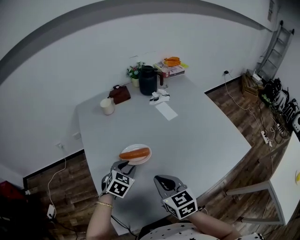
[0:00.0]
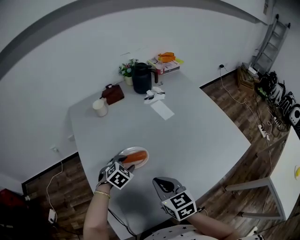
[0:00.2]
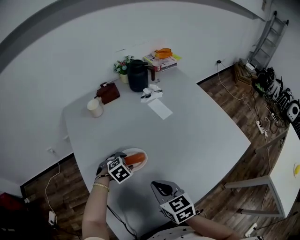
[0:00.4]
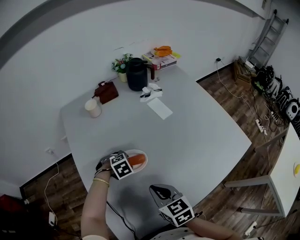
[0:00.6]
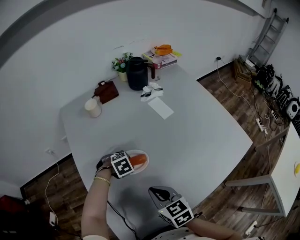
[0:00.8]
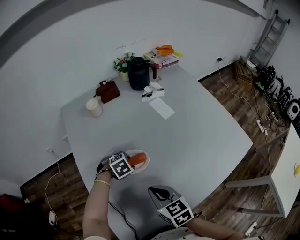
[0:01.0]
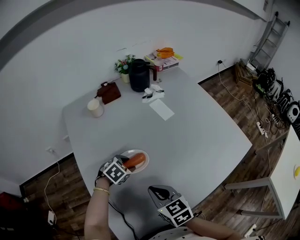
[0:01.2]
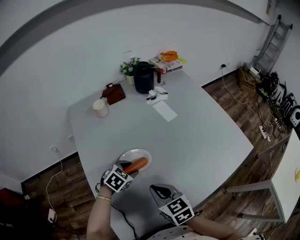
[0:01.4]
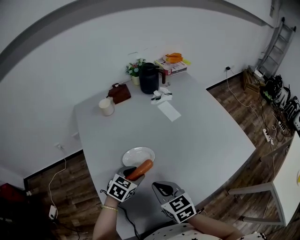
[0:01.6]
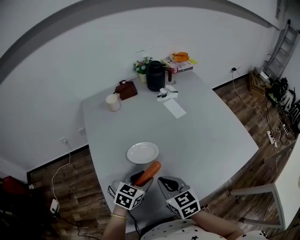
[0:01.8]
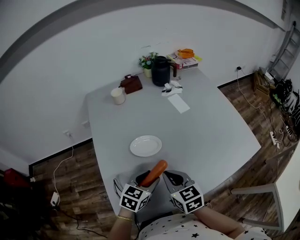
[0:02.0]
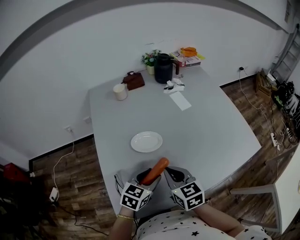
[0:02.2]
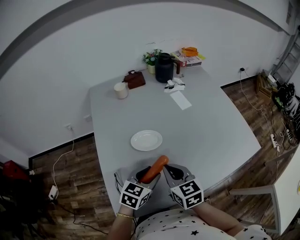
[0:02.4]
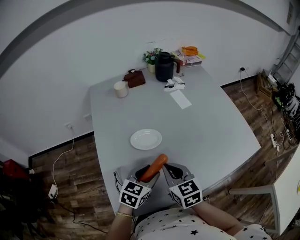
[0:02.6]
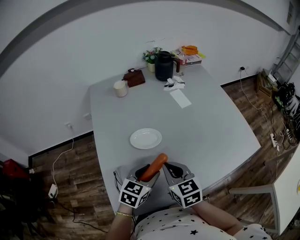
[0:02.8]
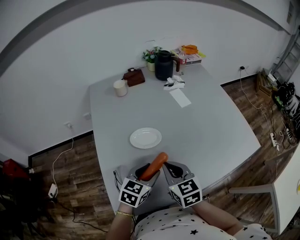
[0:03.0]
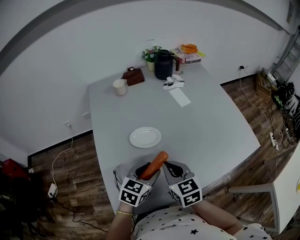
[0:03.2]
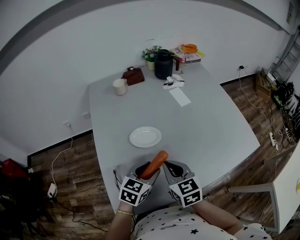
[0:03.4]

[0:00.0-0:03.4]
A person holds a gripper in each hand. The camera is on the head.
0:00.0 to 0:01.6: The left gripper moves roughly 10 cm downward and comes back.
0:01.6 to 0:03.4: The left gripper travels backward by approximately 10 cm.

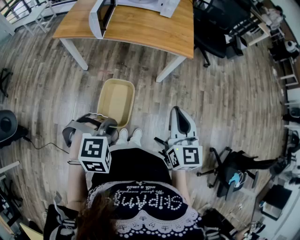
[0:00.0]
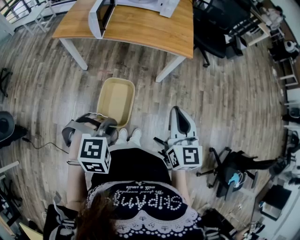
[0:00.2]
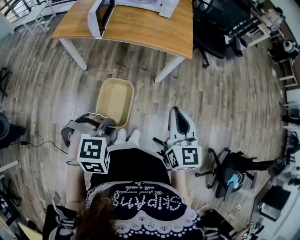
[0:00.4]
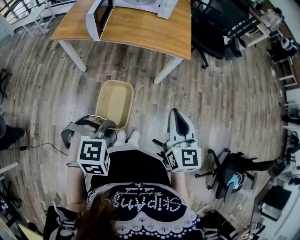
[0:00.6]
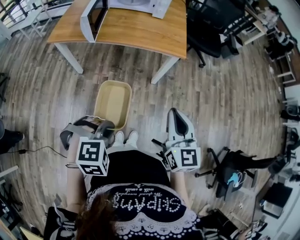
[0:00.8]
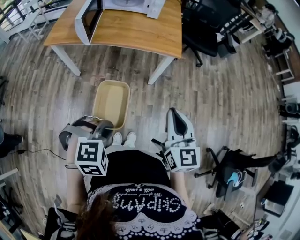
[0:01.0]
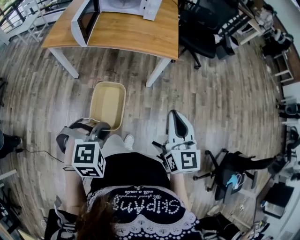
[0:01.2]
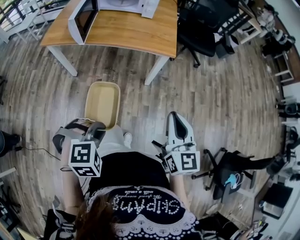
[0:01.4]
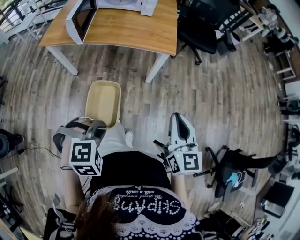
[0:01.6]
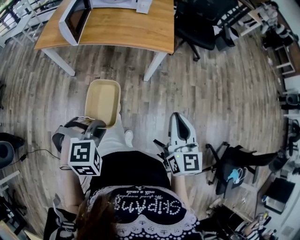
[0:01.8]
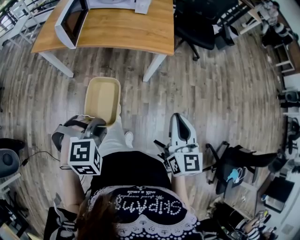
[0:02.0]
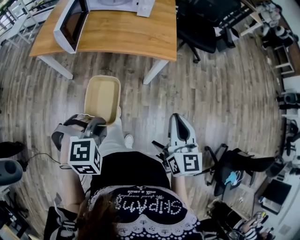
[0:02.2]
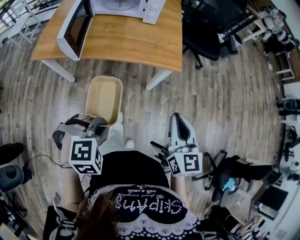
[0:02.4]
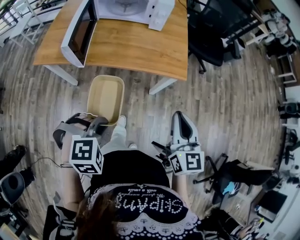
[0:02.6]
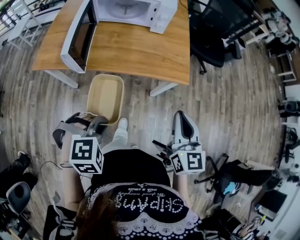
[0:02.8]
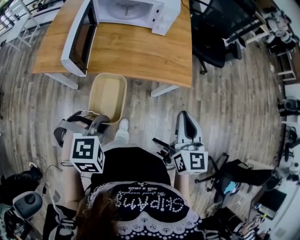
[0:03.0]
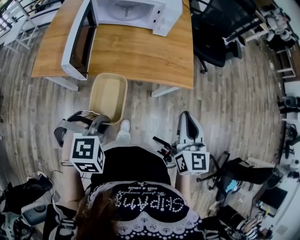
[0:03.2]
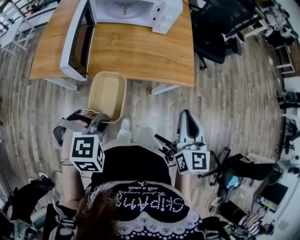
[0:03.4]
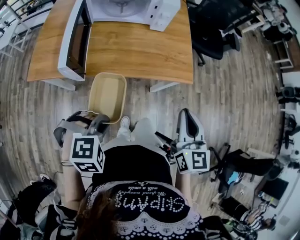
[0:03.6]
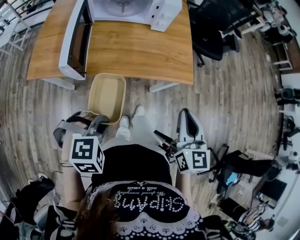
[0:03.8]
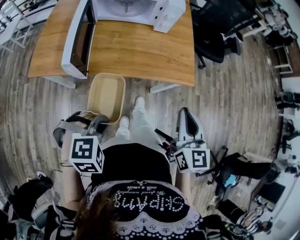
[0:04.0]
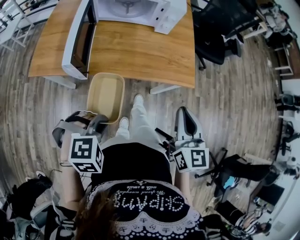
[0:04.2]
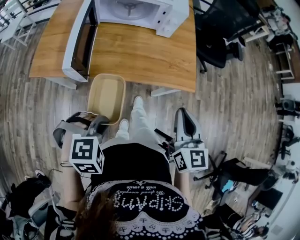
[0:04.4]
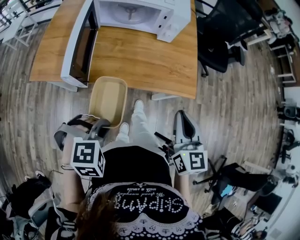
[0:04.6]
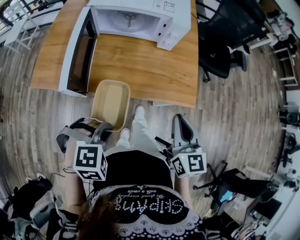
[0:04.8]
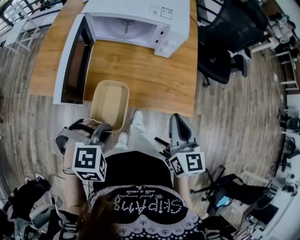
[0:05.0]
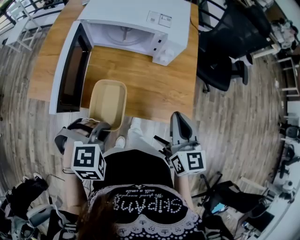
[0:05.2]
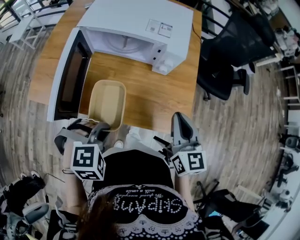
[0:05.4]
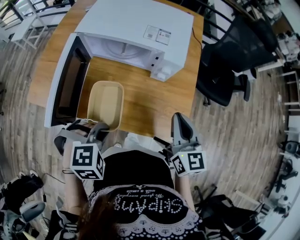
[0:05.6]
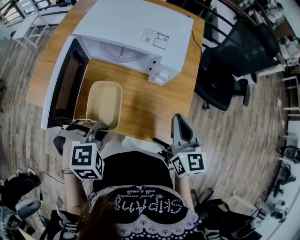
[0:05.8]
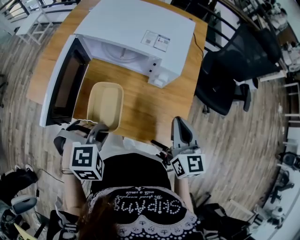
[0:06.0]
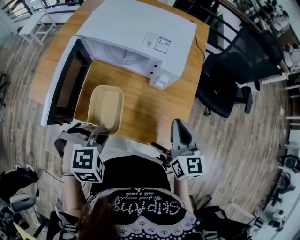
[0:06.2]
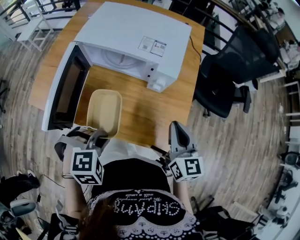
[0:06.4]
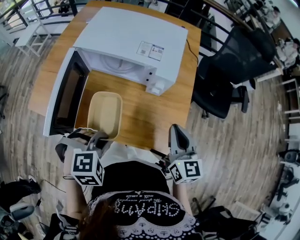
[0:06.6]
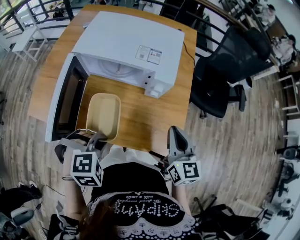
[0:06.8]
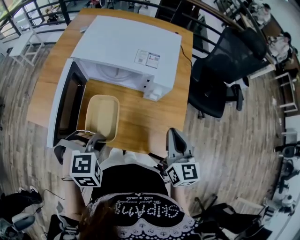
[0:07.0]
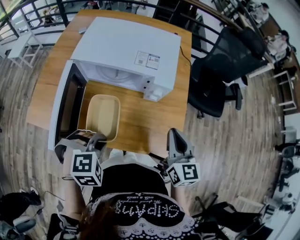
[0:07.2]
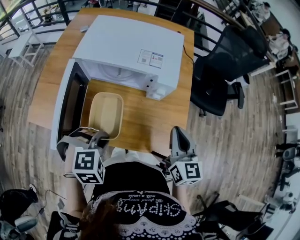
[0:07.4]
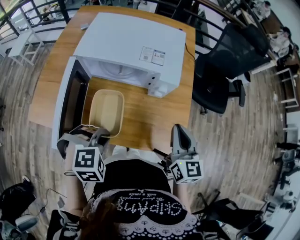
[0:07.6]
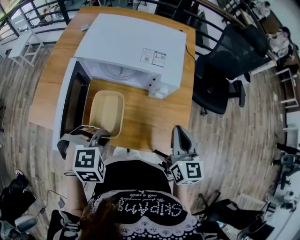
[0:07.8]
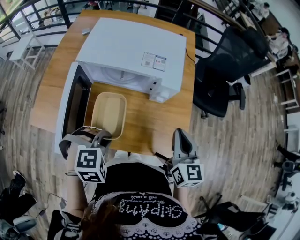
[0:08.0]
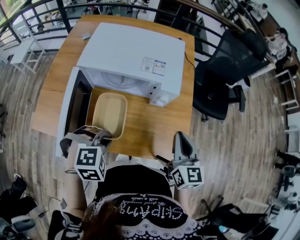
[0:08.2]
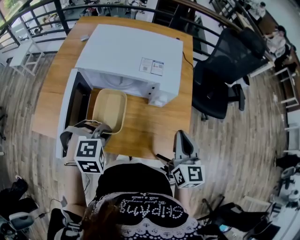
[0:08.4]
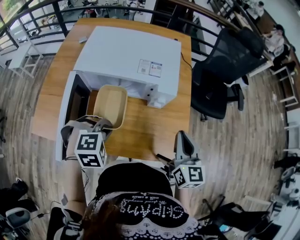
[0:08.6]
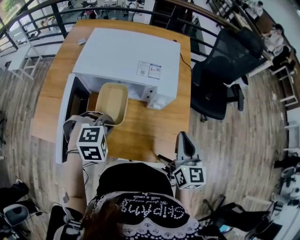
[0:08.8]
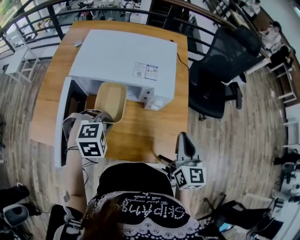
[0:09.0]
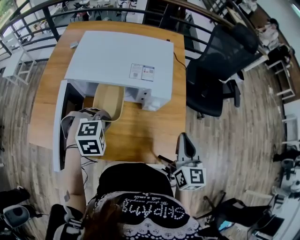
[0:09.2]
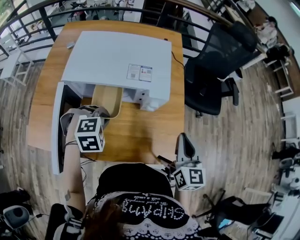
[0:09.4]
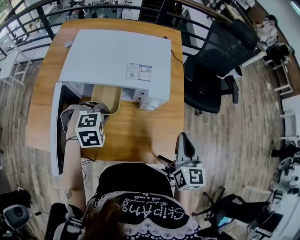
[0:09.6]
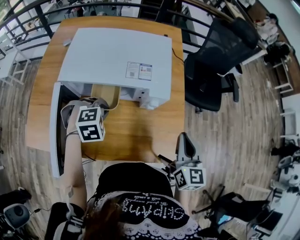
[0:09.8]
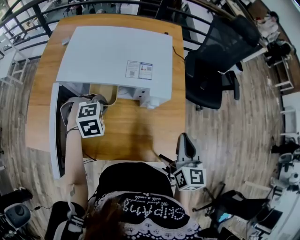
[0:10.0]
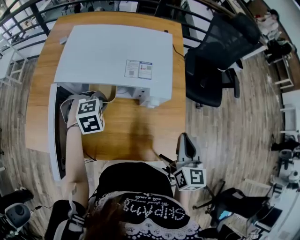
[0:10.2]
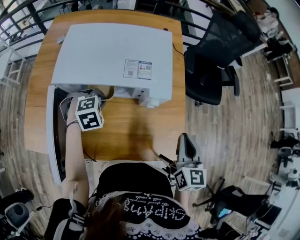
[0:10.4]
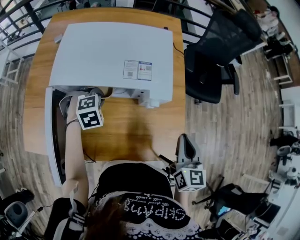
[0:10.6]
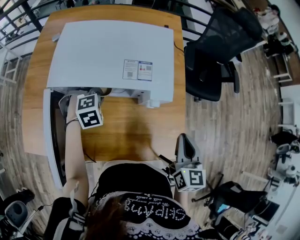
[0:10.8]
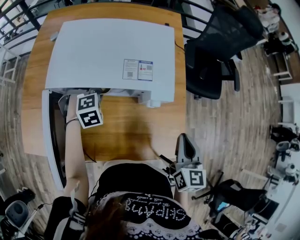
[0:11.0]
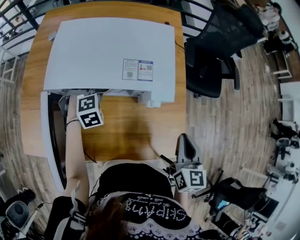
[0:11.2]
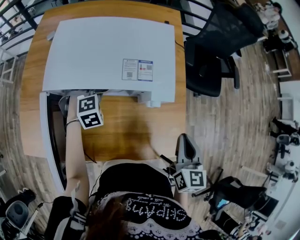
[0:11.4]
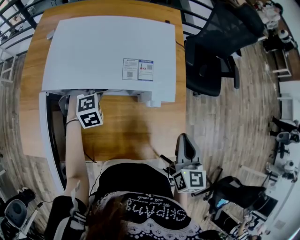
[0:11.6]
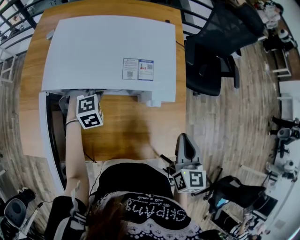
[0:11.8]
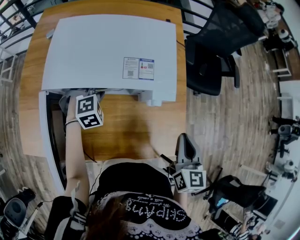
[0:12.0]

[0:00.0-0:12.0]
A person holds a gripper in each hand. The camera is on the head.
0:00.0 to 0:01.6: The left gripper moves to the right, approximately 5 cm, while the right gripper travels to the right by roughly 10 cm.
0:01.6 to 0:03.0: Both grippers travel together forward and to the left, approximately 25 cm.
0:03.0 to 0:04.4: The right gripper is displaced to the left by about 5 cm.
0:04.4 to 0:06.0: Both grippers travel together forward, about 25 cm.
0:06.0 to 0:07.6: The left gripper changes place by roughly 5 cm.
0:07.6 to 0:09.0: The left gripper heads forward, covering about 10 cm.
0:09.0 to 0:10.4: The left gripper is displaced forward, downward and to the left by some 15 cm.
0:10.4 to 0:12.0: The left gripper moves approximately 5 cm.

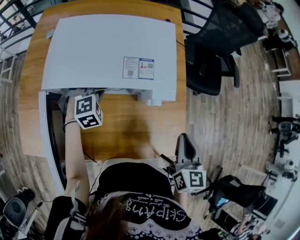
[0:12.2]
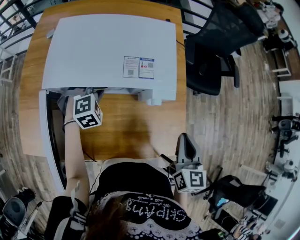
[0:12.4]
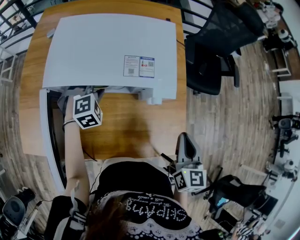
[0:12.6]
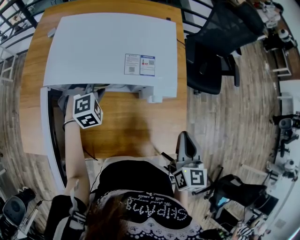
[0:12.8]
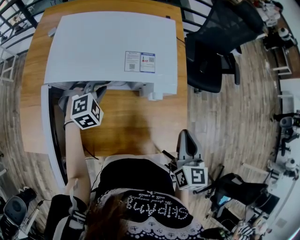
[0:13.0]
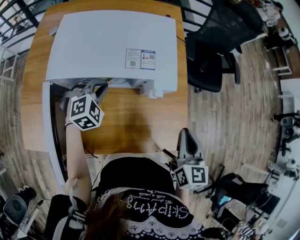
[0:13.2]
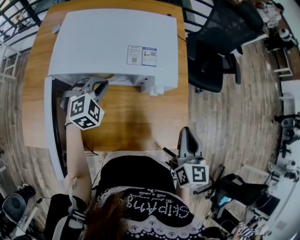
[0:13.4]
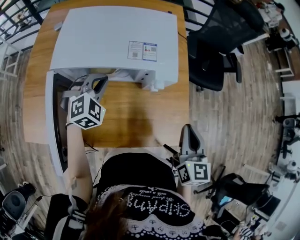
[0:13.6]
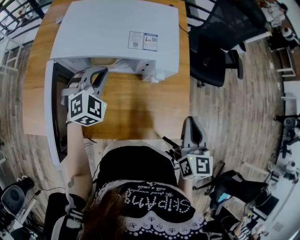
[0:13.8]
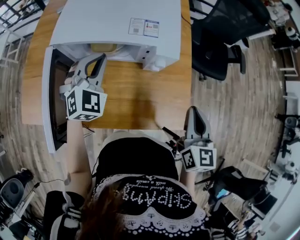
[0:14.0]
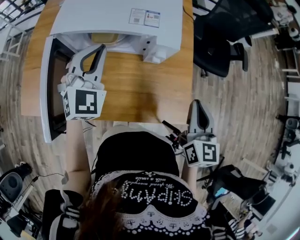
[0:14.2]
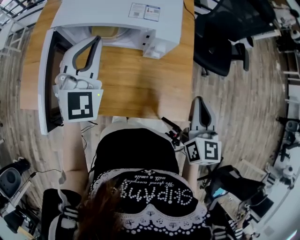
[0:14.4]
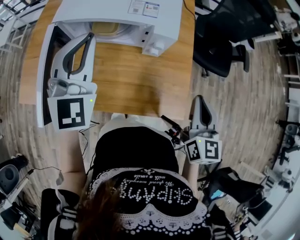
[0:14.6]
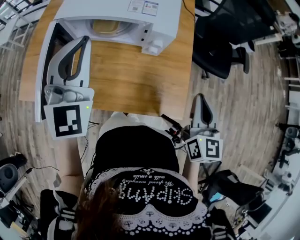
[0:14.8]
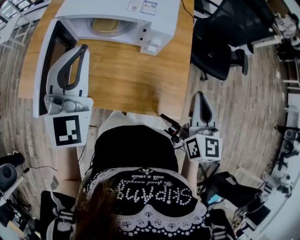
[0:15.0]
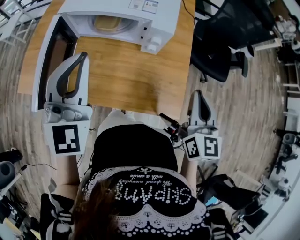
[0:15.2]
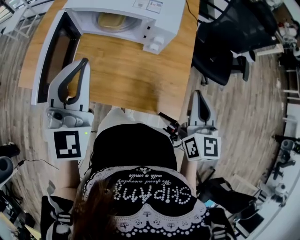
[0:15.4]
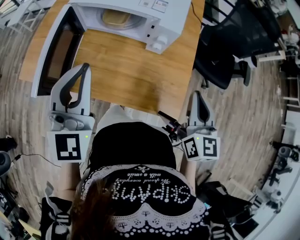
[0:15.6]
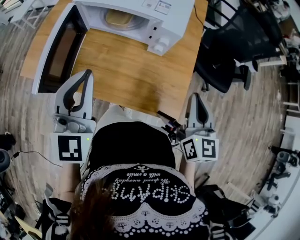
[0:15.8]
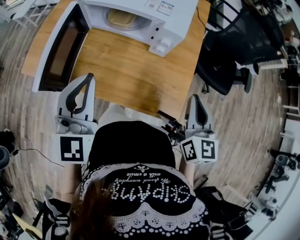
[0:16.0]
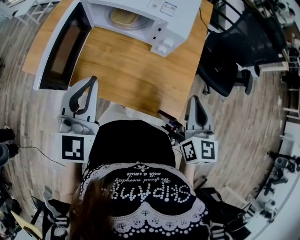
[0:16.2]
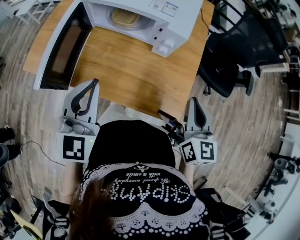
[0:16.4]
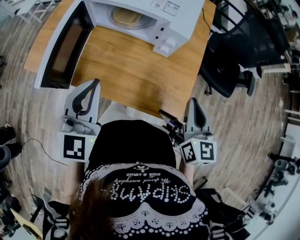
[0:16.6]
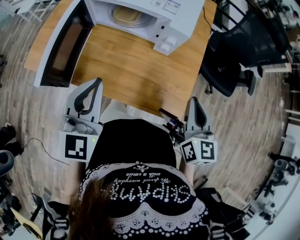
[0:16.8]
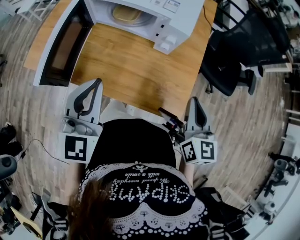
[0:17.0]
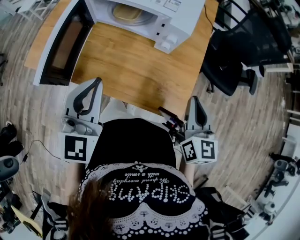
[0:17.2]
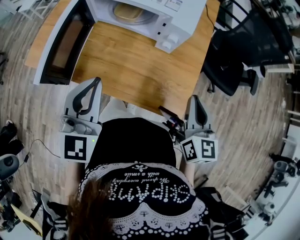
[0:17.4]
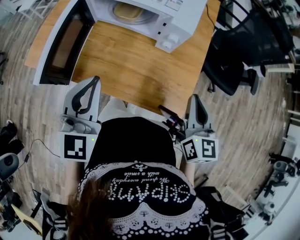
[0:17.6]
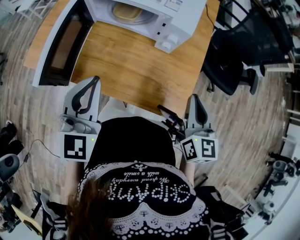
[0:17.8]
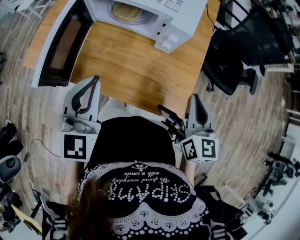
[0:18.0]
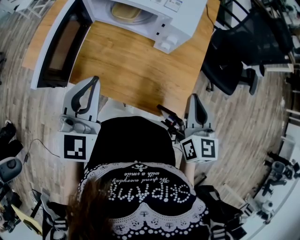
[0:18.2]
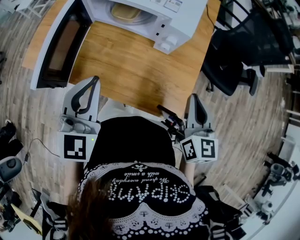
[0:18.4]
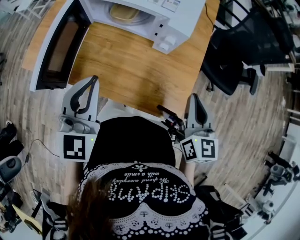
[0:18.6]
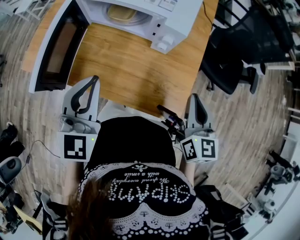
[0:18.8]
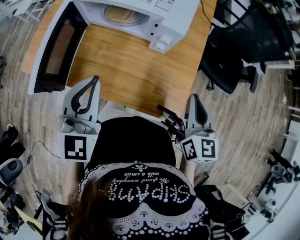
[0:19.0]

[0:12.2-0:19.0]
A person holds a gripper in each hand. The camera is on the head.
0:12.2 to 0:13.6: The left gripper moves upward, about 10 cm, and closes up.
0:13.6 to 0:15.0: The right gripper travels to the right by some 5 cm. Meanwhile the left gripper heads upward and backward, covering roughly 25 cm, and tilts its fingers roughly 40 degrees upward.
0:15.0 to 0:16.2: The left gripper shifts approximately 10 cm backward and downward.
0:16.2 to 0:19.0: The grippers stay close to where they were, moving slightly.

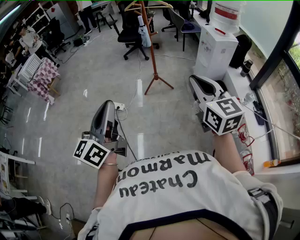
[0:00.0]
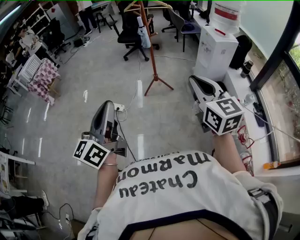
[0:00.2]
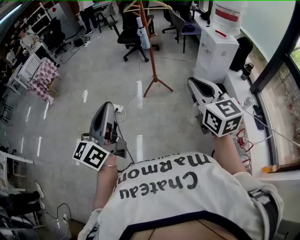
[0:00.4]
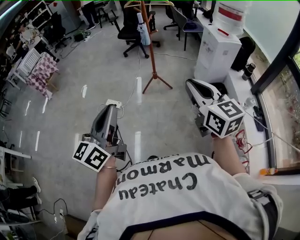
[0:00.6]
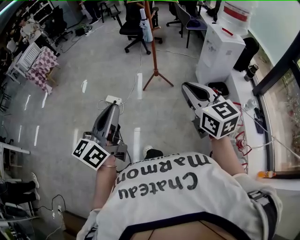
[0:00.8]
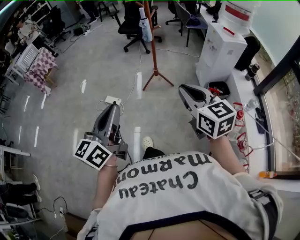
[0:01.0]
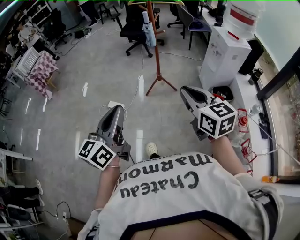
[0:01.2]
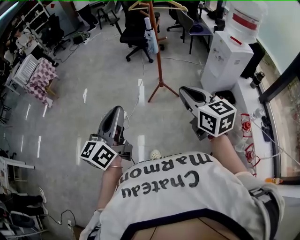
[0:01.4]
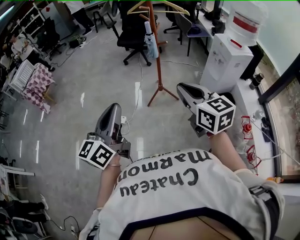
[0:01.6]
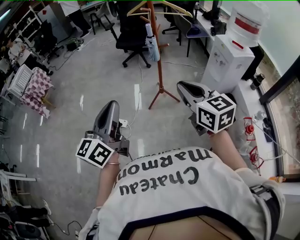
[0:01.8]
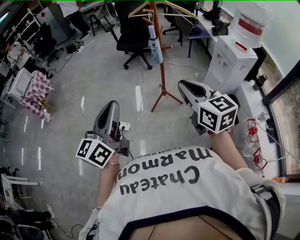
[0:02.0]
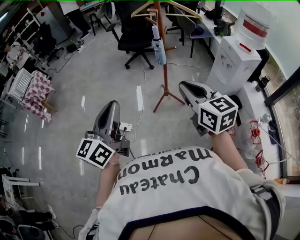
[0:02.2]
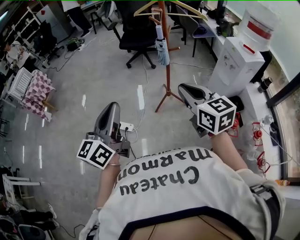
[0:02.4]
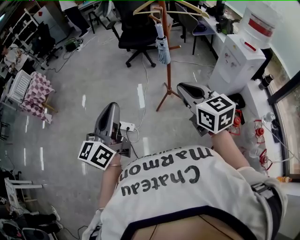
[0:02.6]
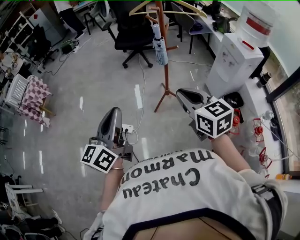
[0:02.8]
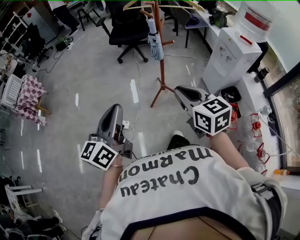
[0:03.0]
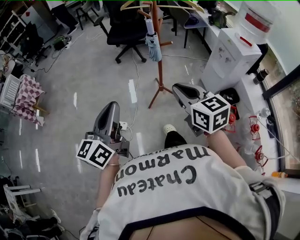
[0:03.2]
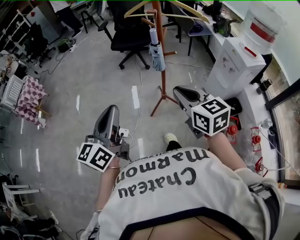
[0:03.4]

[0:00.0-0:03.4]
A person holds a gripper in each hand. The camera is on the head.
0:00.0 to 0:01.6: The right gripper heads forward and to the left, covering about 25 cm. The left gripper heads forward, covering about 25 cm.
0:01.6 to 0:03.4: The two grippers go approximately 20 cm forward.
